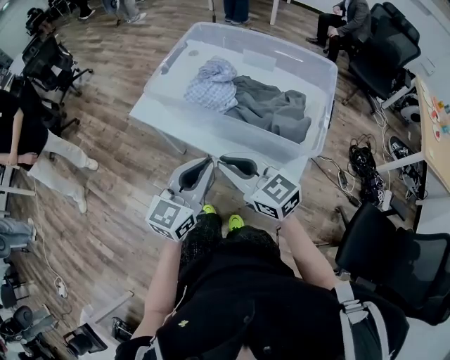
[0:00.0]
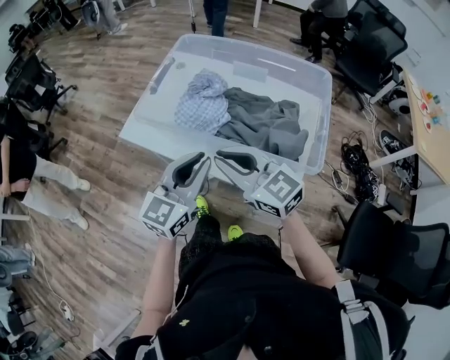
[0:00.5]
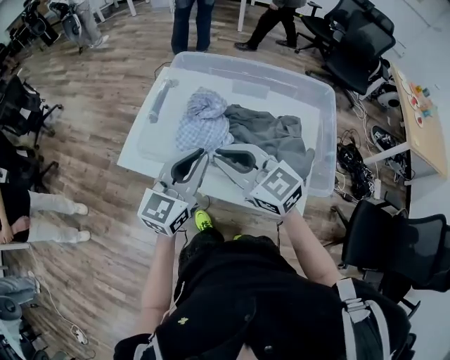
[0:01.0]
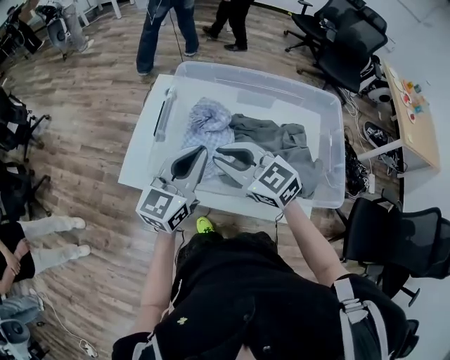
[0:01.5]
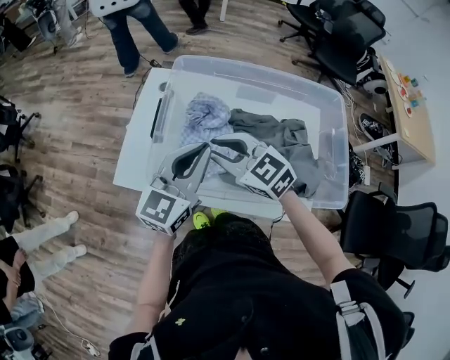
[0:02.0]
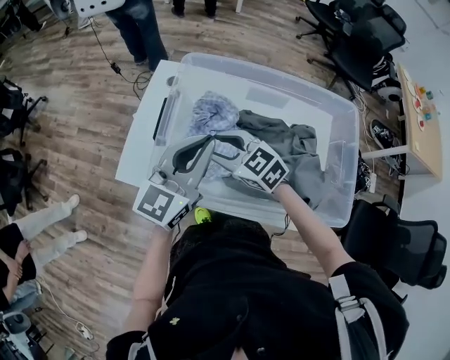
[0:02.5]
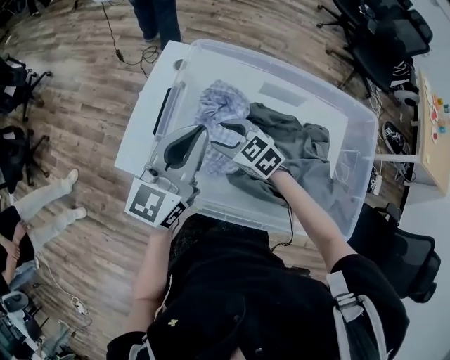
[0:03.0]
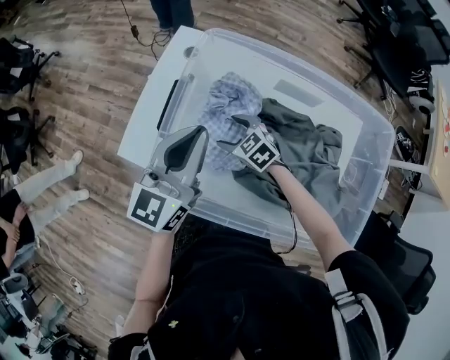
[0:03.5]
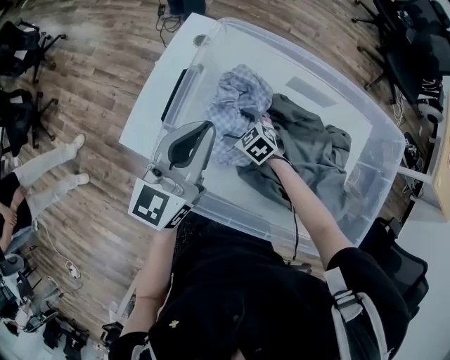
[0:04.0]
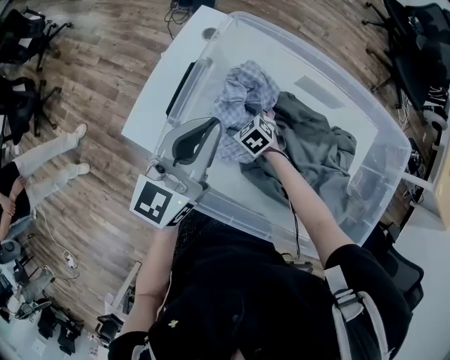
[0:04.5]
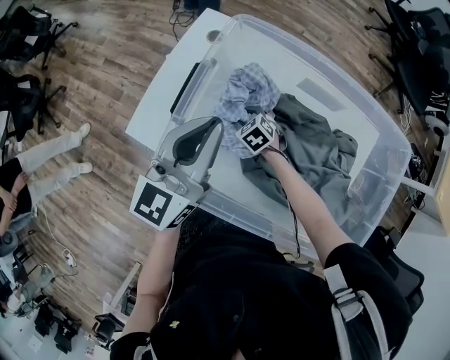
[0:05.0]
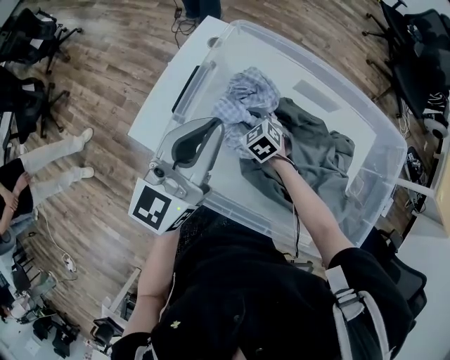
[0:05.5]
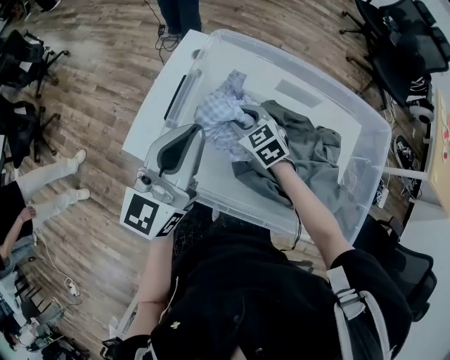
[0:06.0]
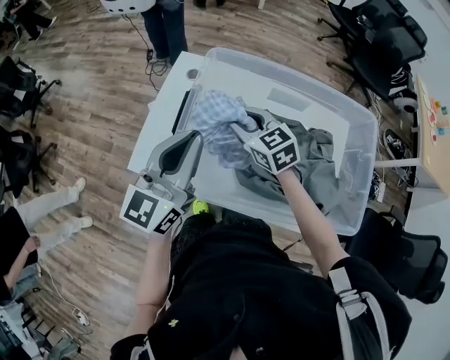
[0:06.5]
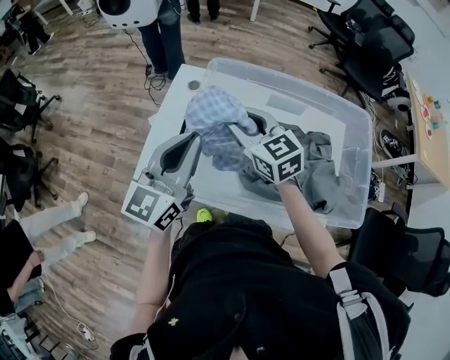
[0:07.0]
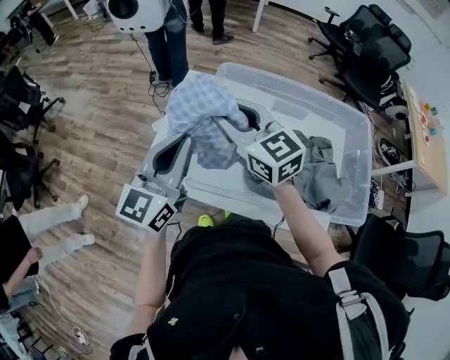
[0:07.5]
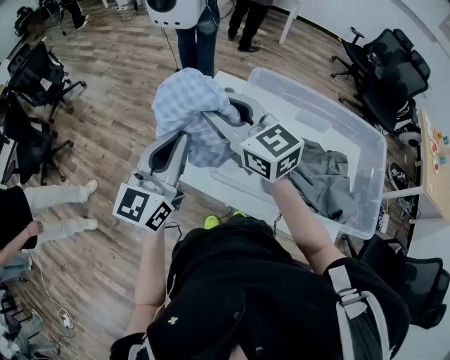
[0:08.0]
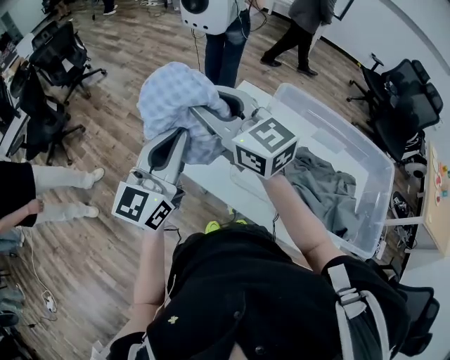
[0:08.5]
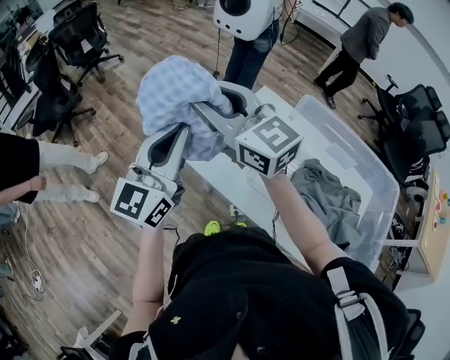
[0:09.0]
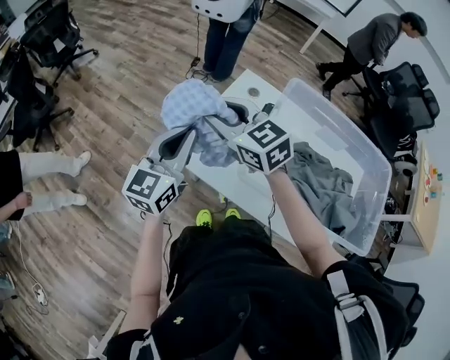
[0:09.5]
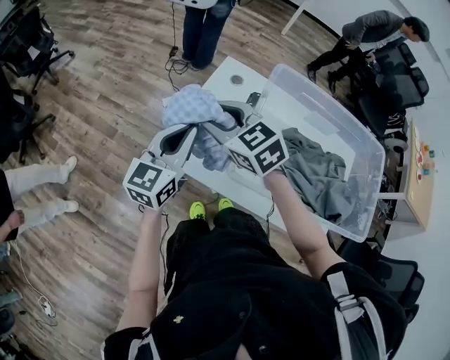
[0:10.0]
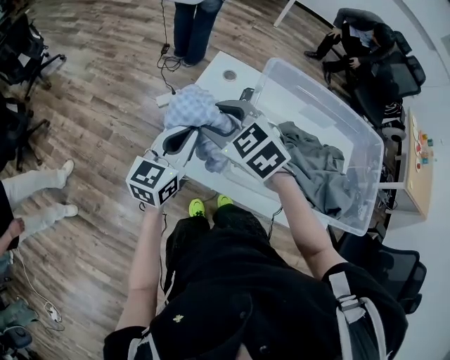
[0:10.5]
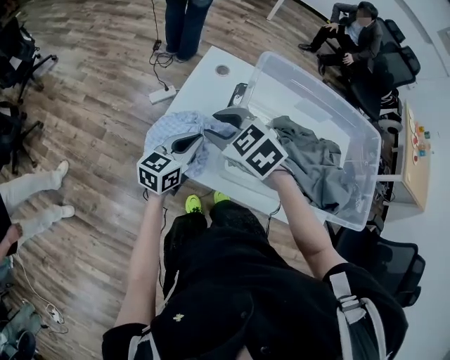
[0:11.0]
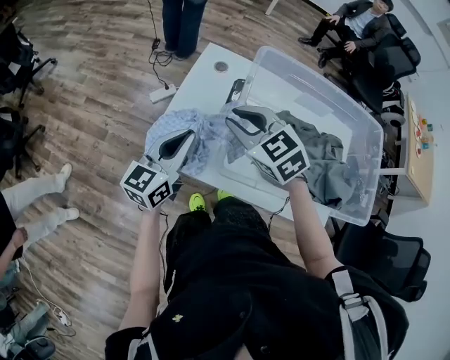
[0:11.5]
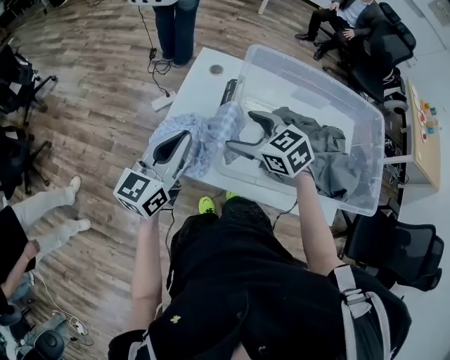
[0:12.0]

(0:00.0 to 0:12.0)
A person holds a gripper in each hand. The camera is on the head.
0:00.0 - 0:02.0: The two grippers go approximately 30 cm forward. The right gripper swivels roughly 20 degrees.
0:02.0 - 0:04.0: The left gripper moves forward, about 10 cm. The right gripper moves downward, approximately 30 cm, swivels roughly 30 degrees, and opens up.
0:04.0 - 0:06.0: The left gripper shifts roughly 5 cm upward. Meanwhile the right gripper is displaced upward by approximately 15 cm, and closes its fingers.
0:06.0 - 0:08.0: The left gripper moves to the left, some 20 cm. Meanwhile the right gripper shifts roughly 35 cm upward and to the left, and points its fingers roughly 40 degrees further upward.
0:08.0 - 0:10.0: The left gripper heads downward and forward, covering about 15 cm, while the right gripper shifts approximately 15 cm downward and to the left, and rotates about 30 degrees.
0:10.0 - 0:12.0: The right gripper shifts about 15 cm to the right and downward, and opens. The left gripper travels downward and back again, some 15 cm each way.

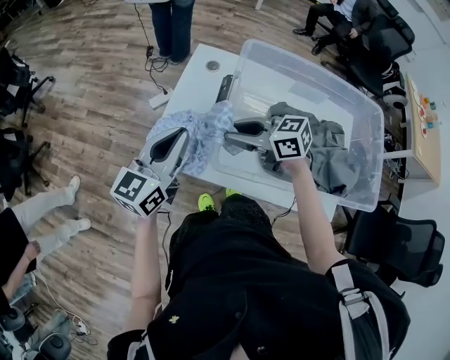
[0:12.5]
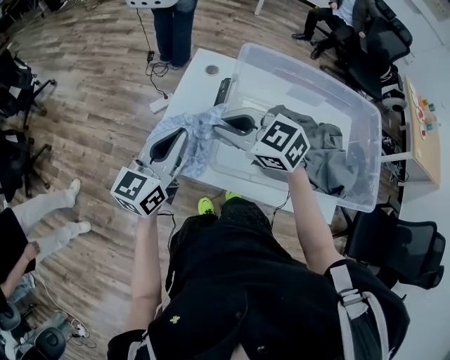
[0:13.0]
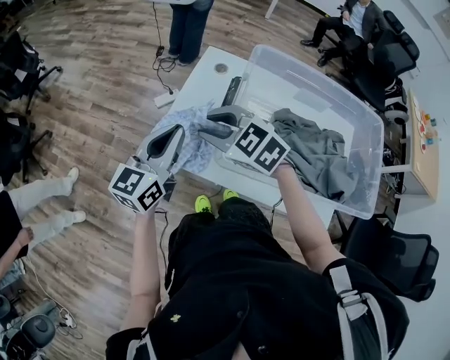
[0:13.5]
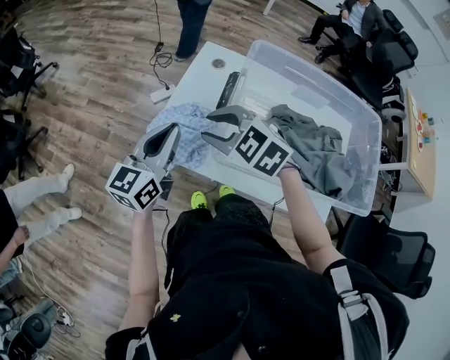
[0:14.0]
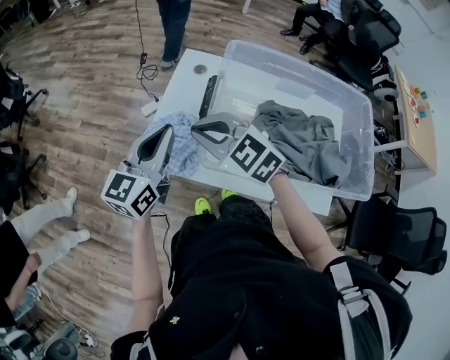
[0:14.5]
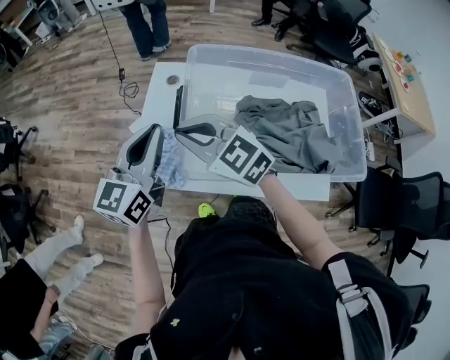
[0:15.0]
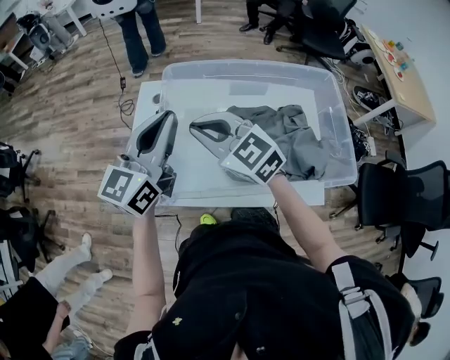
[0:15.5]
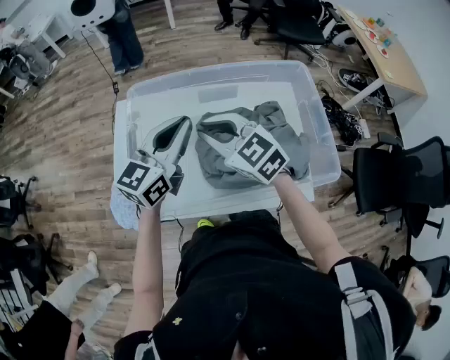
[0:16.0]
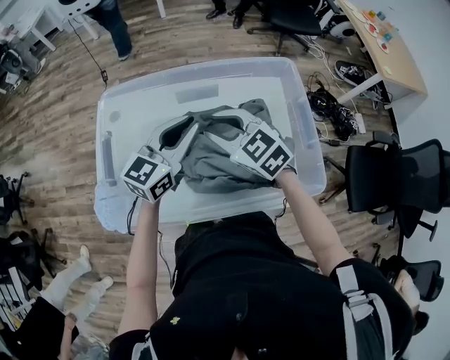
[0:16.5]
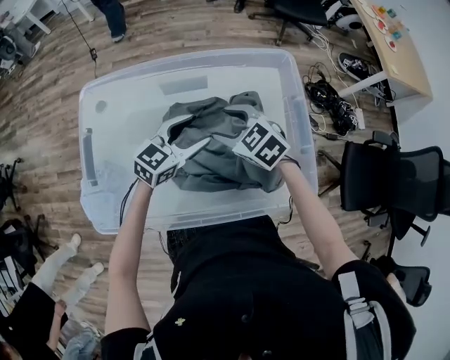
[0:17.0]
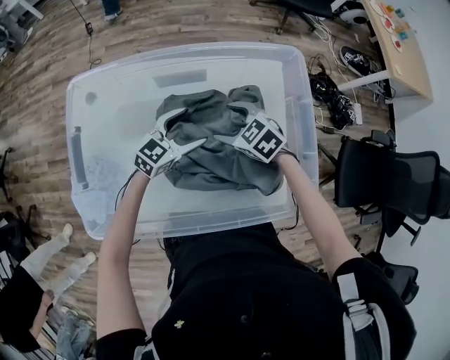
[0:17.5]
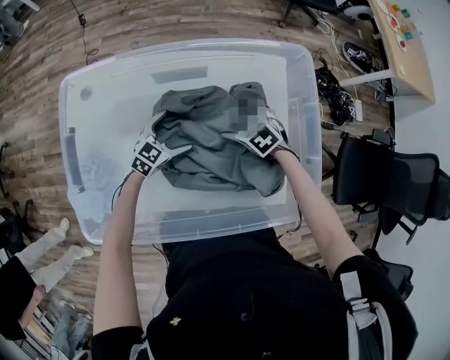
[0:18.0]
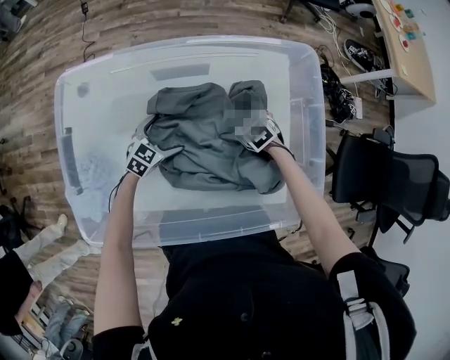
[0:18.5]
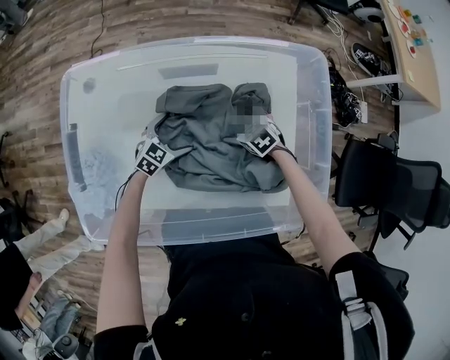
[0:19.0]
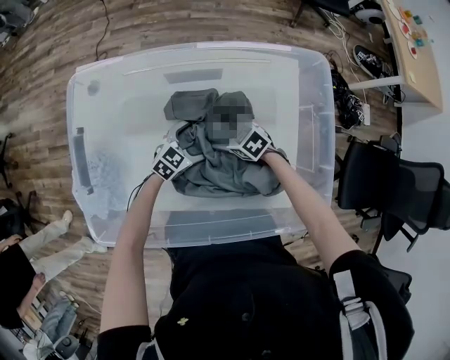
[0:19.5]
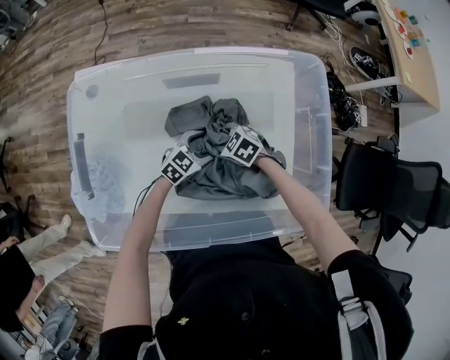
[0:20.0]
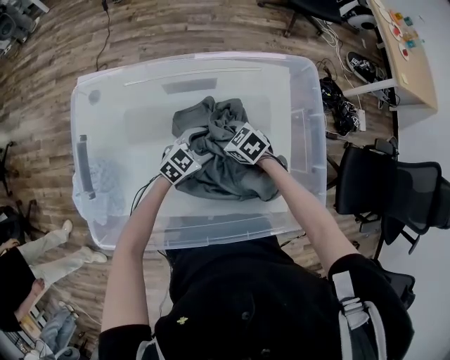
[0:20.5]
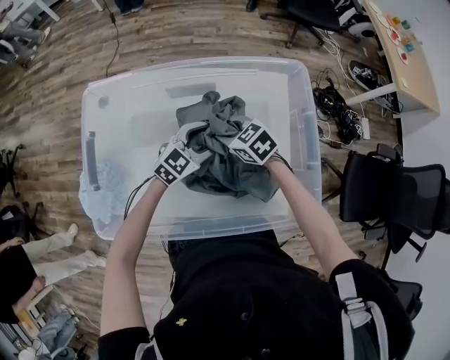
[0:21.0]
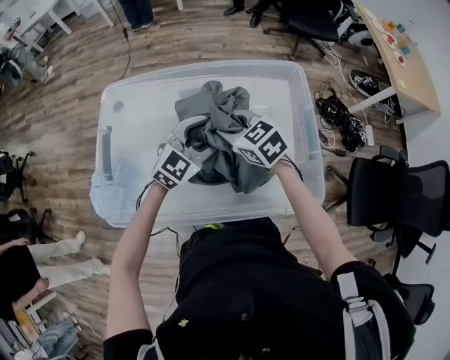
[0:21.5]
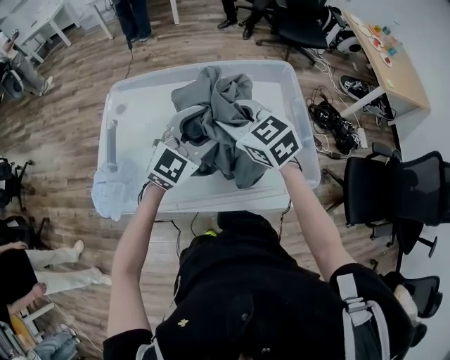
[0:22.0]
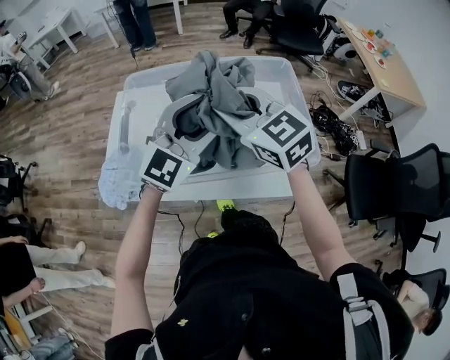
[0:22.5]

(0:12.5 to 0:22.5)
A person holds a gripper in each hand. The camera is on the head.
0:12.5 - 0:14.5: The right gripper shifts about 10 cm upward and to the left, and changes its angle by some 40 degrees.
0:14.5 - 0:16.5: The right gripper changes place by approximately 40 cm, and swivels roughly 30 degrees, while the left gripper reaches roughly 10 cm upward, then returns, and turns by roughly 30 degrees.
0:16.5 - 0:18.5: The left gripper heads downward, covering approximately 35 cm, angles its fingers downward, by some 40 degrees, and opens. The right gripper travels downward and to the right by approximately 30 cm, tips its fingers downward by about 40 degrees, and opens.
0:18.5 - 0:20.5: The left gripper changes place by approximately 15 cm, and closes up. Meanwhile the right gripper shifts by about 10 cm, and closes its fingers.
0:20.5 - 0:22.5: Both grippers travel together upward, some 40 cm. The right gripper tilts its fingers about 40 degrees upward. The left gripper tilts its fingers approximately 30 degrees upward.

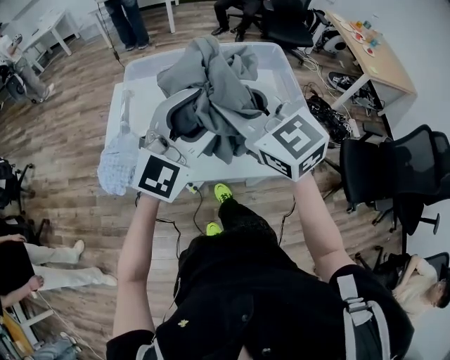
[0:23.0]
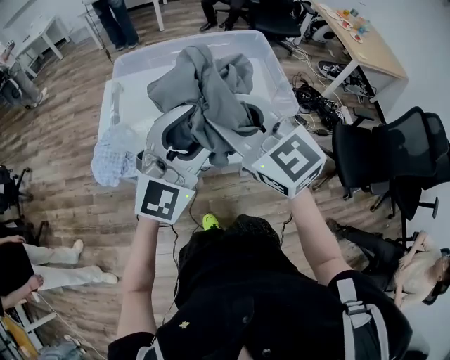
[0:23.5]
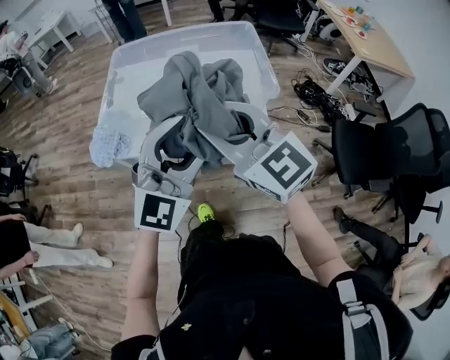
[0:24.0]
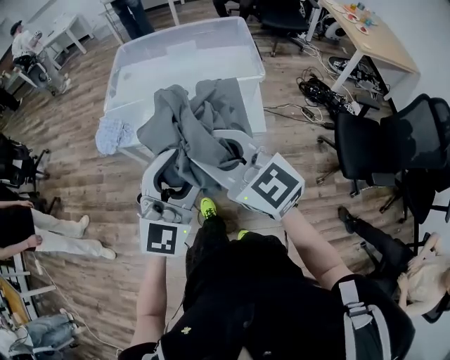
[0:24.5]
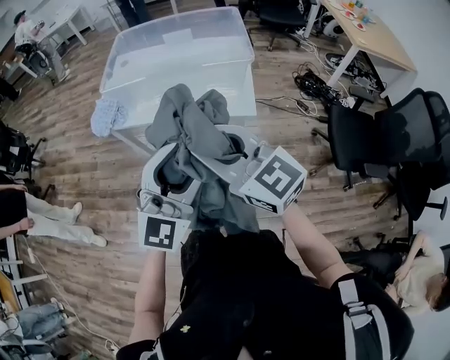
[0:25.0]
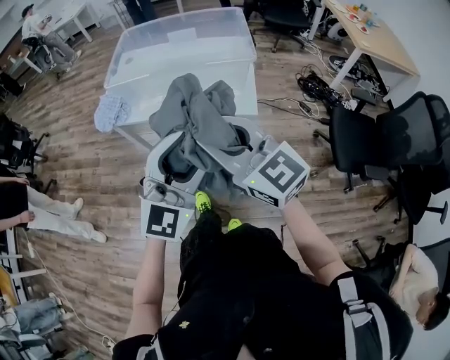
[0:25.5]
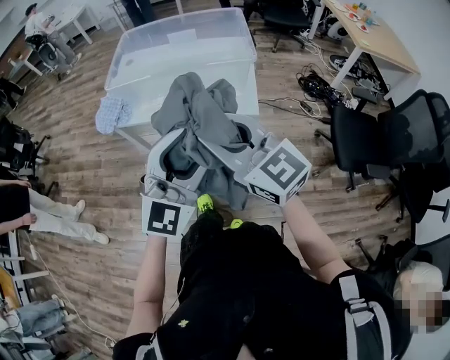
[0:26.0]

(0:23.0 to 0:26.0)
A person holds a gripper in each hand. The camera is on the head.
0:23.0 - 0:24.5: The grippers both shift backward by approximately 30 cm.
0:24.5 - 0:26.0: Both grippers travel together backward, roughly 5 cm.

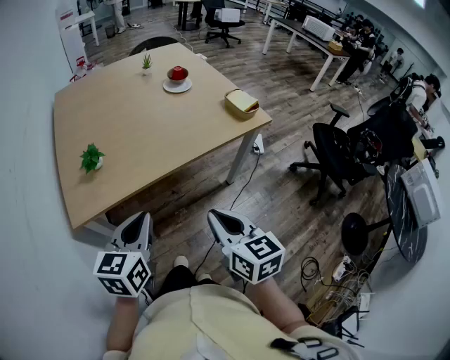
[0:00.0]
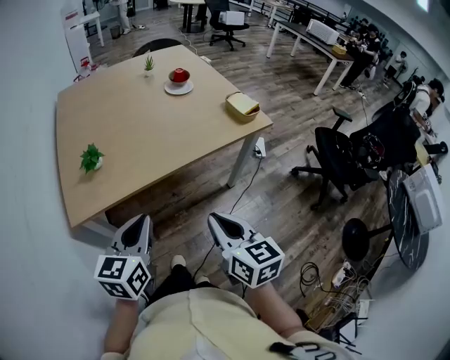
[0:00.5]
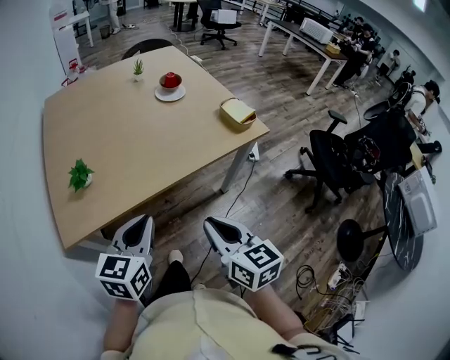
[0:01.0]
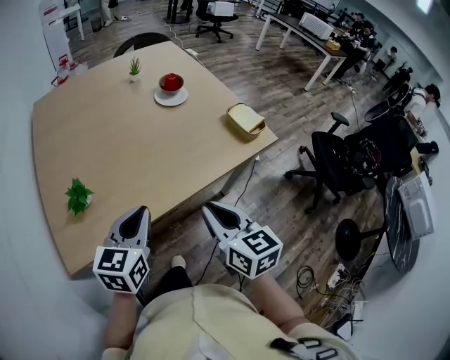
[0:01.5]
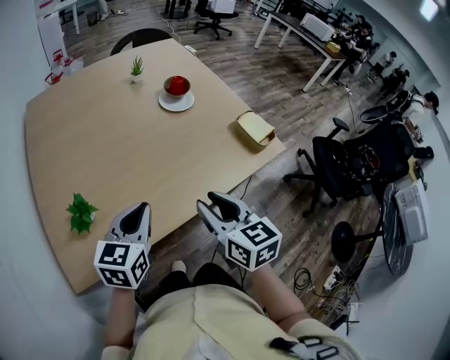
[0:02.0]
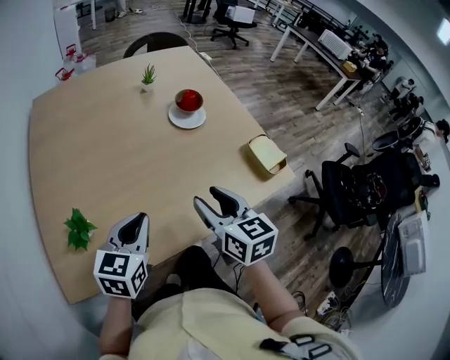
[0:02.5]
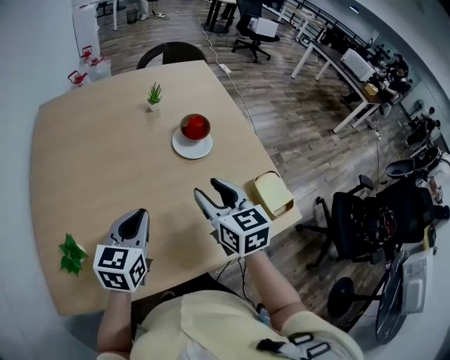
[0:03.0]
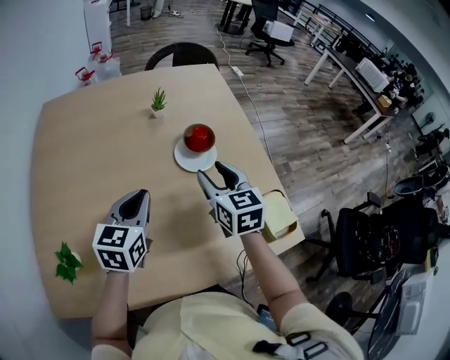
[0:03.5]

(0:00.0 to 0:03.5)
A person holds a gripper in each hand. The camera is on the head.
0:00.0 - 0:02.0: Both grippers move forward, approximately 25 cm. The right gripper opens its fingers.
0:02.0 - 0:03.5: The grippers both shift forward by some 30 cm.
